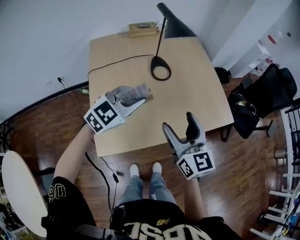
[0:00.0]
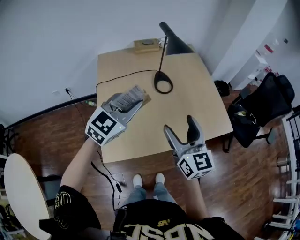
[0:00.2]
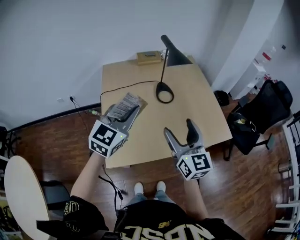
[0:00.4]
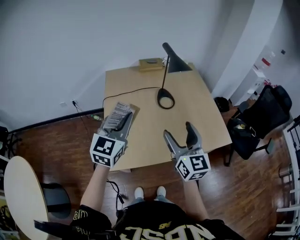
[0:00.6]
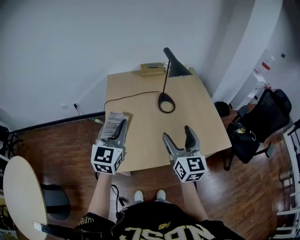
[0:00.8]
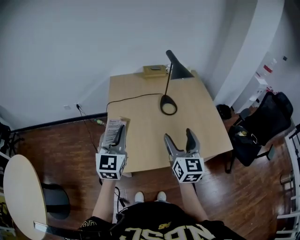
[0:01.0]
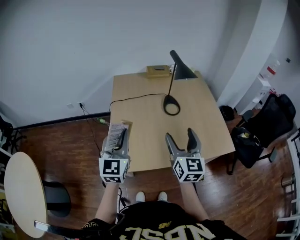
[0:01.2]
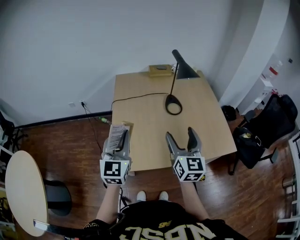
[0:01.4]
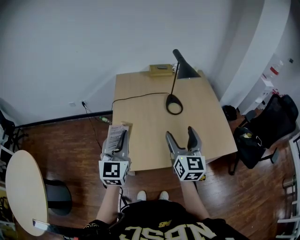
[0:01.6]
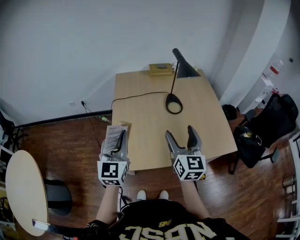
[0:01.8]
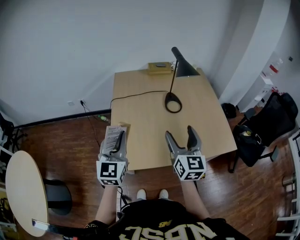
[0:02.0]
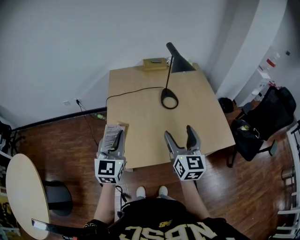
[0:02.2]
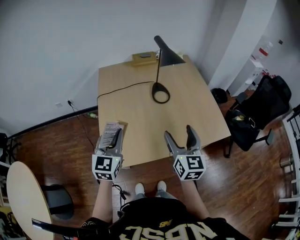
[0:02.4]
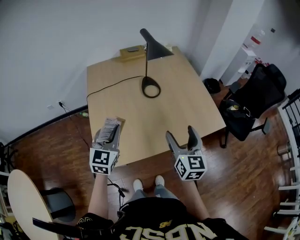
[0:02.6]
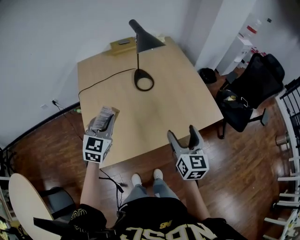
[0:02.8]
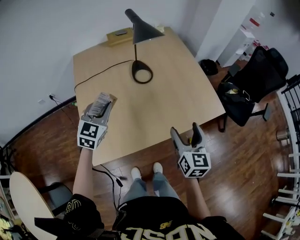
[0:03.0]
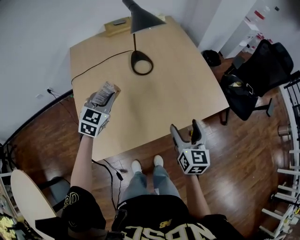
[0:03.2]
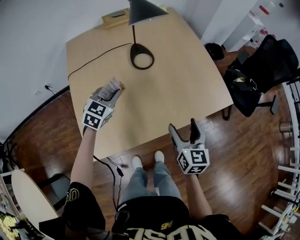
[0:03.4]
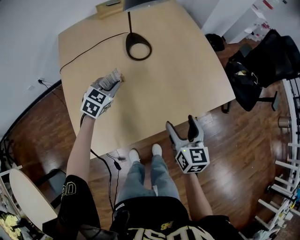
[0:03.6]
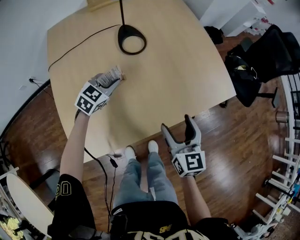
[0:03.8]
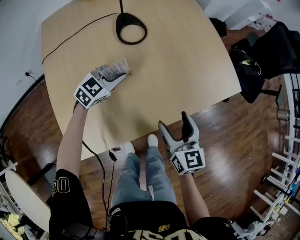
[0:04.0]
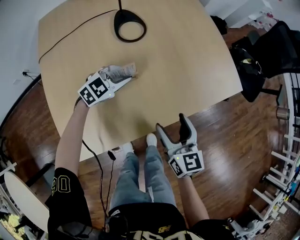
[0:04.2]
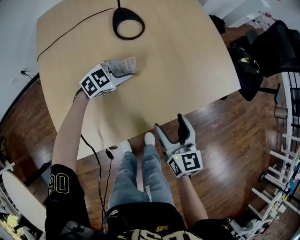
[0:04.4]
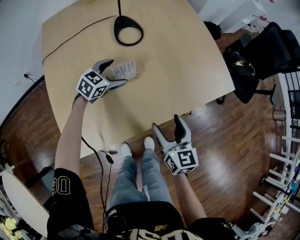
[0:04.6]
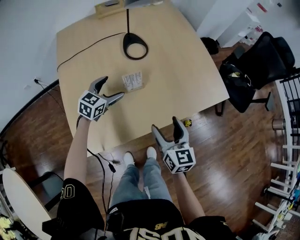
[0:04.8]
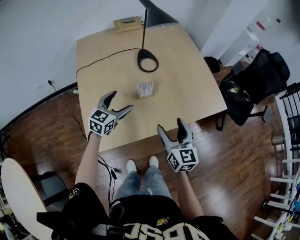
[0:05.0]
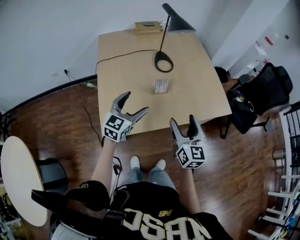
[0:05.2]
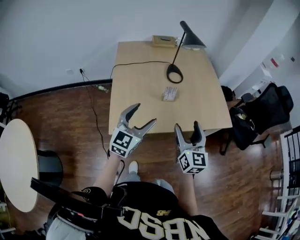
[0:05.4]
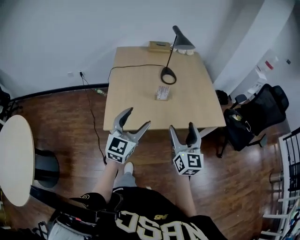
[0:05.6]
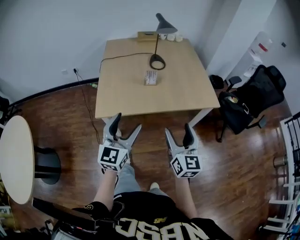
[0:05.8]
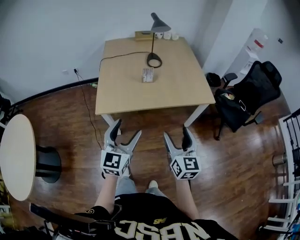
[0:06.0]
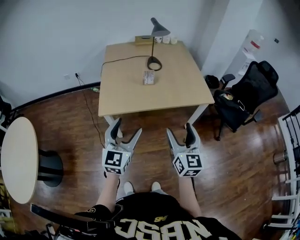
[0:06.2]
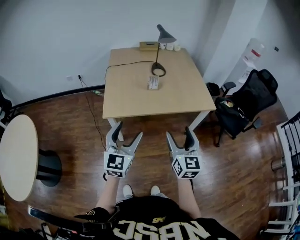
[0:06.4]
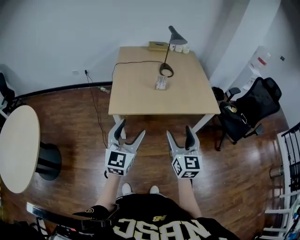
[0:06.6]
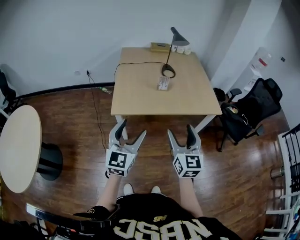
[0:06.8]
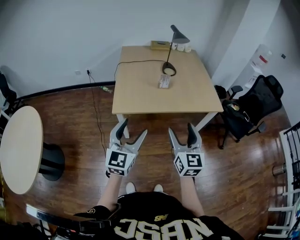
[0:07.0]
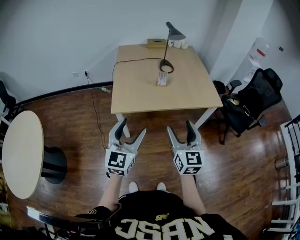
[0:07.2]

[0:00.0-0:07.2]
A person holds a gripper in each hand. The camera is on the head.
0:00.0 to 0:01.4: The right gripper moves upward, about 5 cm. The left gripper travels to the left, backward and upward by some 20 cm, and turns by some 60 degrees.
0:01.4 to 0:02.8: The left gripper goes approximately 15 cm downward, forward and to the right, and rotates about 30 degrees, while the right gripper moves to the right and downward, some 15 cm.
0:02.8 to 0:04.4: The left gripper shifts some 35 cm downward and forward, and turns by some 50 degrees; the right gripper travels downward by roughly 20 cm.
0:04.4 to 0:05.8: The right gripper moves roughly 35 cm, and turns by approximately 20 degrees. The left gripper moves approximately 60 cm, points its fingers roughly 40 degrees further upward, and opens up.
0:05.8 to 0:07.2: The two grippers go roughly 10 cm backward and to the left.

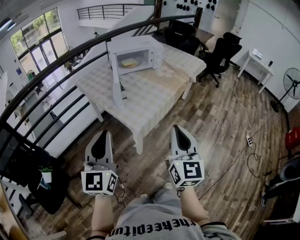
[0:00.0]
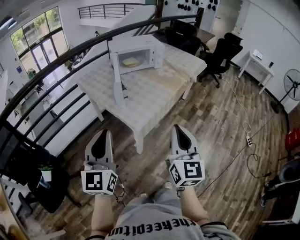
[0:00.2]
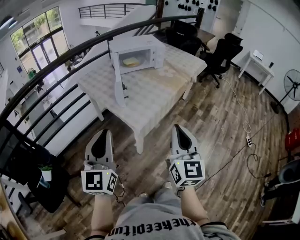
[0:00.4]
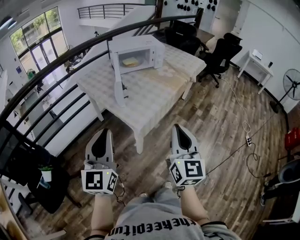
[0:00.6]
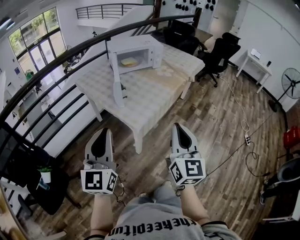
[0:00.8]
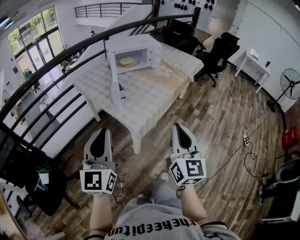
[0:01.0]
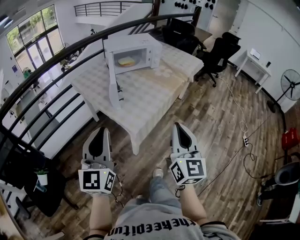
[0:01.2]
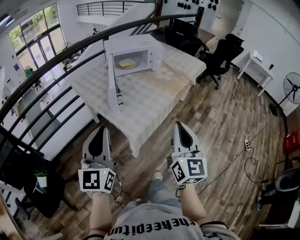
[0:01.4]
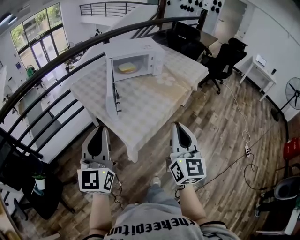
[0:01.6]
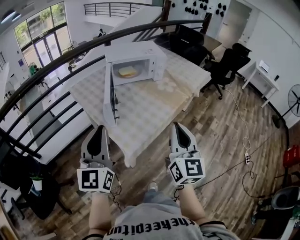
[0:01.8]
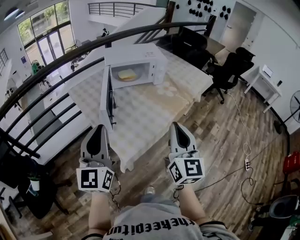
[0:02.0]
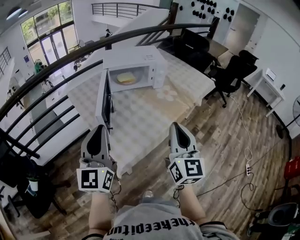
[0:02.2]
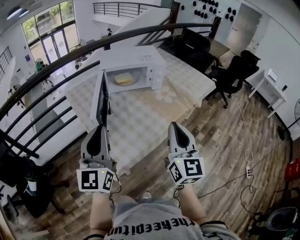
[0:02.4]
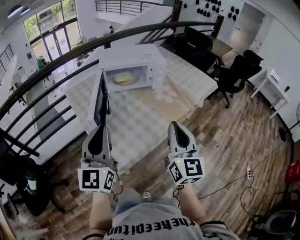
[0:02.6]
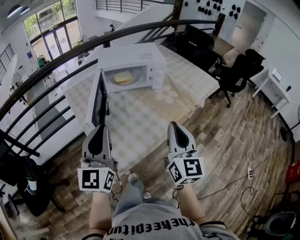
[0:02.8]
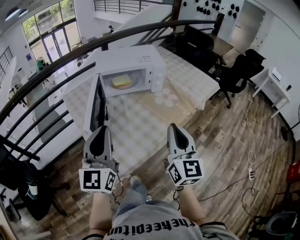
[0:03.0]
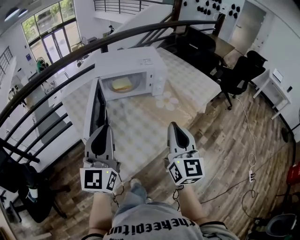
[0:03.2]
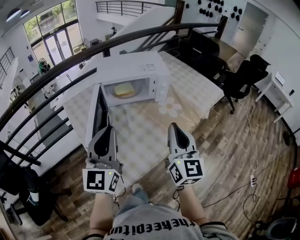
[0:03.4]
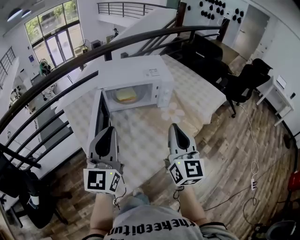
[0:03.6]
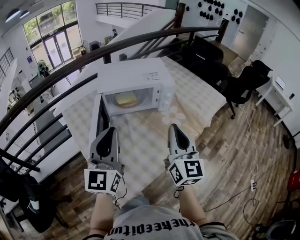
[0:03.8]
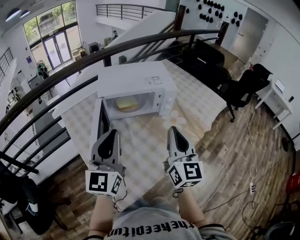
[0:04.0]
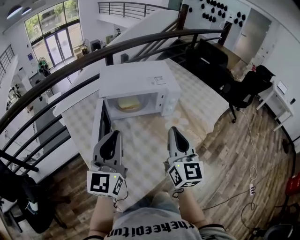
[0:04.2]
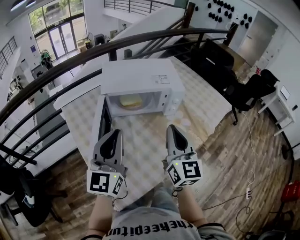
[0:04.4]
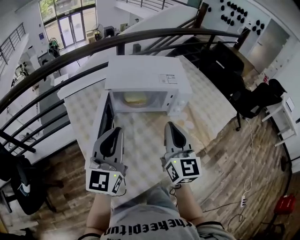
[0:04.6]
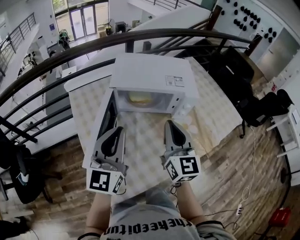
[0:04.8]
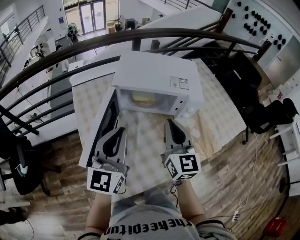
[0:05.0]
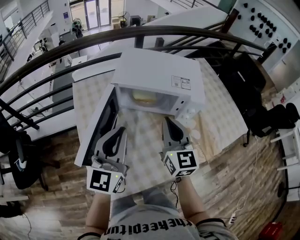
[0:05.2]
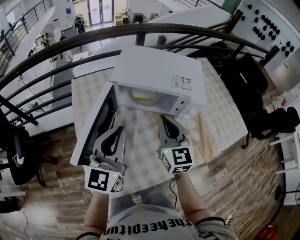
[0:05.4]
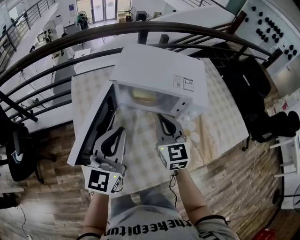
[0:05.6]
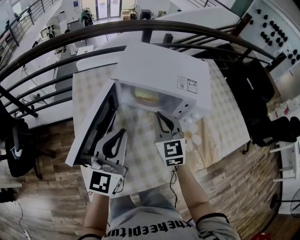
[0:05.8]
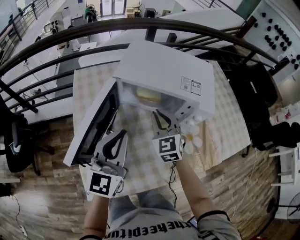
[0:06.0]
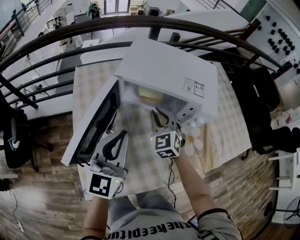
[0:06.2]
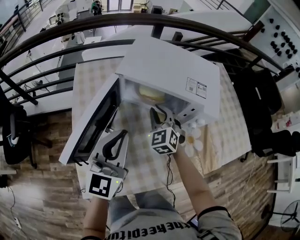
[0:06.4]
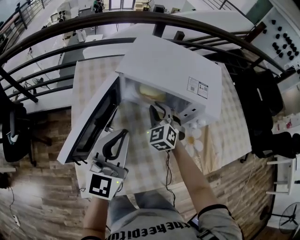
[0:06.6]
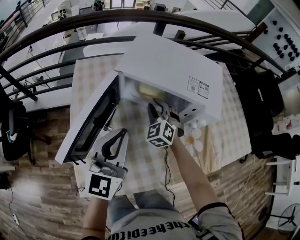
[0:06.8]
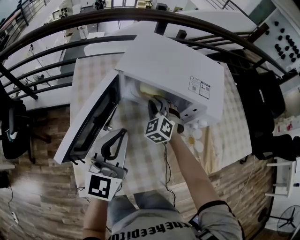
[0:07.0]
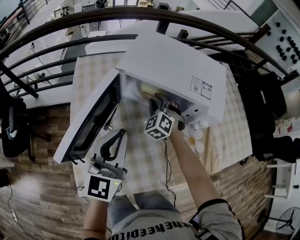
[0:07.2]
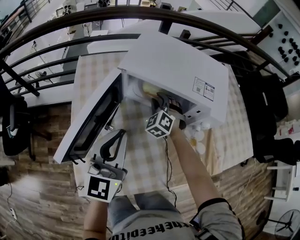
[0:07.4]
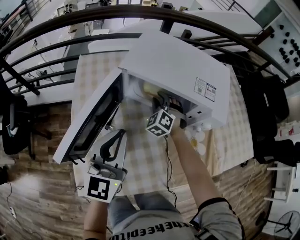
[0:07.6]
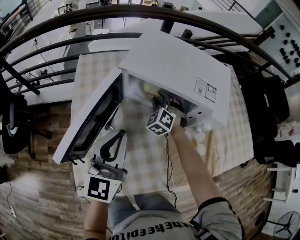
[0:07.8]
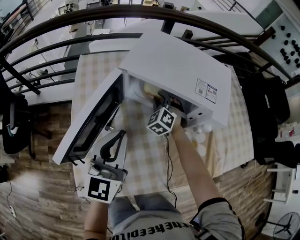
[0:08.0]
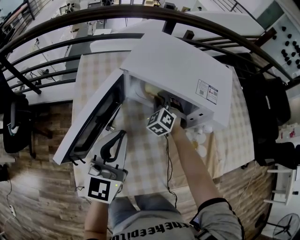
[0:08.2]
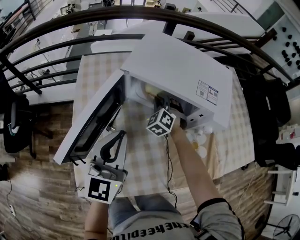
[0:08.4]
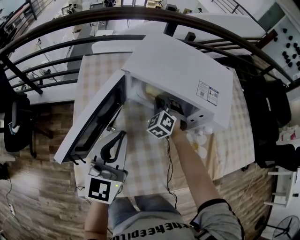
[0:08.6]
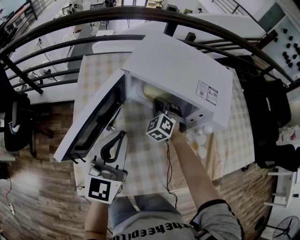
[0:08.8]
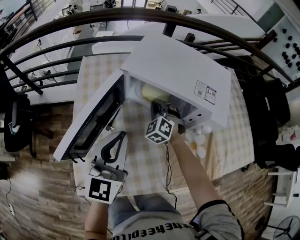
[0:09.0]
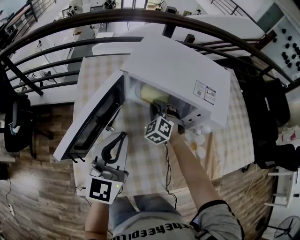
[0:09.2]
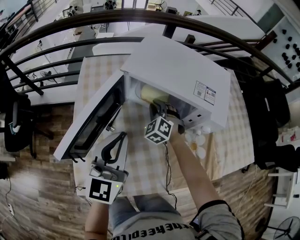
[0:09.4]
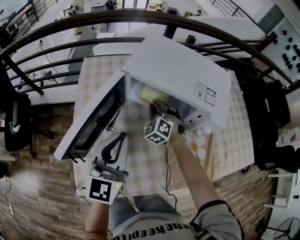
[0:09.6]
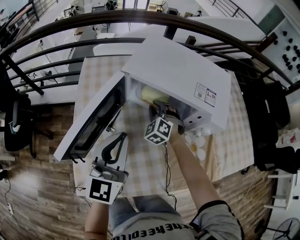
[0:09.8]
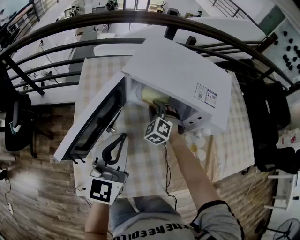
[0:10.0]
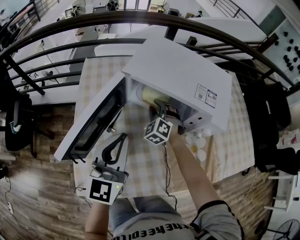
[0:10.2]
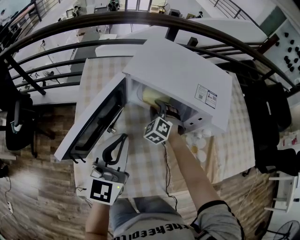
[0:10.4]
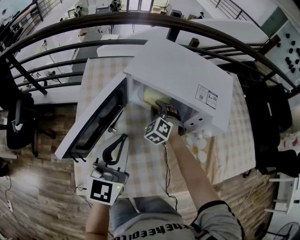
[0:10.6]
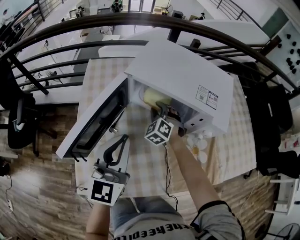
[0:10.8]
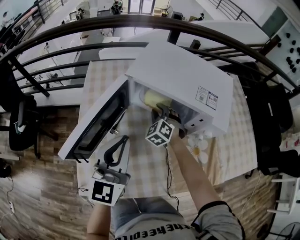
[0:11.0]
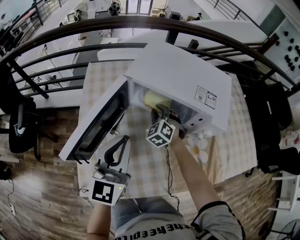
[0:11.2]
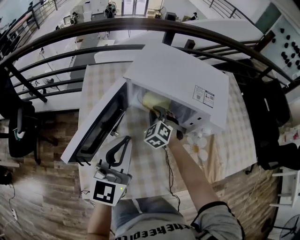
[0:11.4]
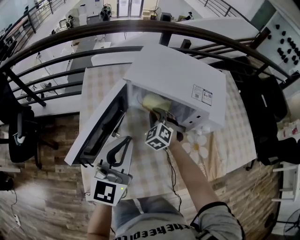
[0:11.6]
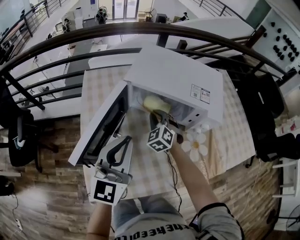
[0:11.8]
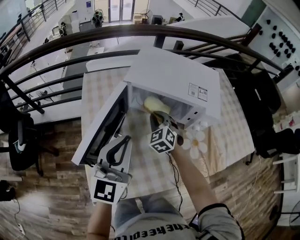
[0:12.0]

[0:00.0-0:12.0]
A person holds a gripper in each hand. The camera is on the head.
0:00.0 to 0:01.6: The grippers both shift forward by about 10 cm.
0:01.6 to 0:03.0: The two grippers go approximately 25 cm forward and to the right.
0:03.0 to 0:04.4: Both grippers move forward, approximately 20 cm.
0:04.4 to 0:06.0: The right gripper shifts roughly 25 cm forward and downward, and swivels some 50 degrees. Meanwhile the left gripper goes some 10 cm downward and forward.
0:06.0 to 0:07.6: The right gripper heads downward and forward, covering approximately 15 cm, changes its angle by approximately 40 degrees, and opens its fingers.
0:07.6 to 0:09.0: The right gripper closes up.
0:09.0 to 0:10.4: The right gripper opens up.
0:10.4 to 0:12.0: The left gripper moves some 5 cm; the right gripper heads upward and backward, covering roughly 10 cm, turns by about 20 degrees, and closes up.

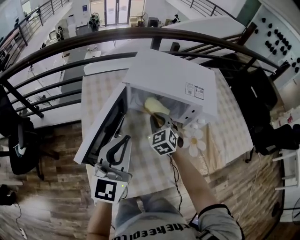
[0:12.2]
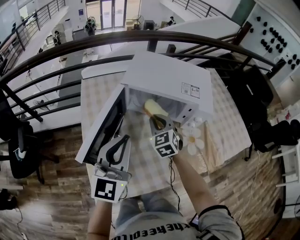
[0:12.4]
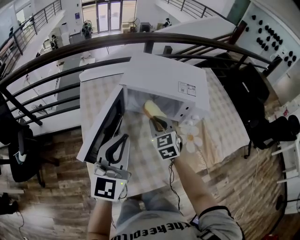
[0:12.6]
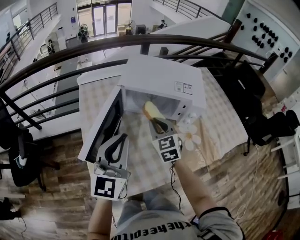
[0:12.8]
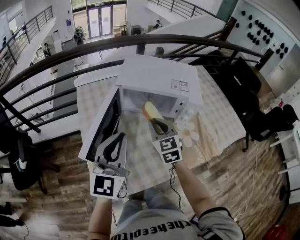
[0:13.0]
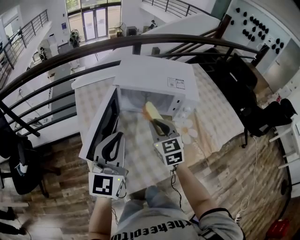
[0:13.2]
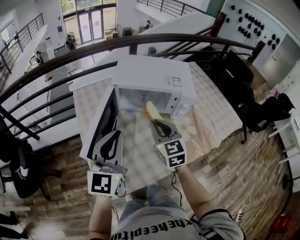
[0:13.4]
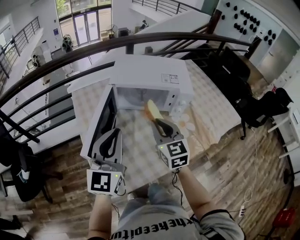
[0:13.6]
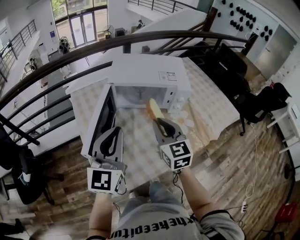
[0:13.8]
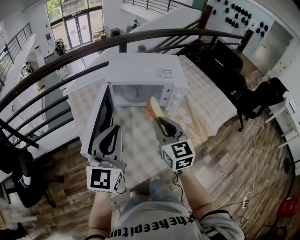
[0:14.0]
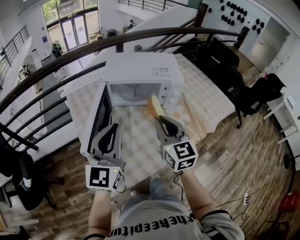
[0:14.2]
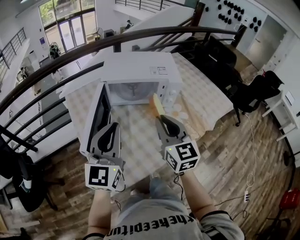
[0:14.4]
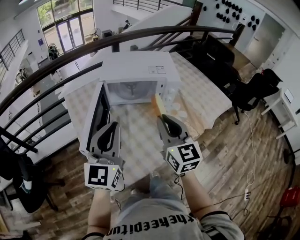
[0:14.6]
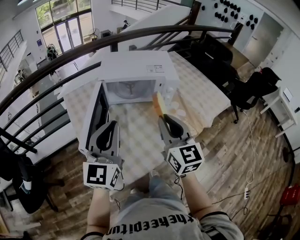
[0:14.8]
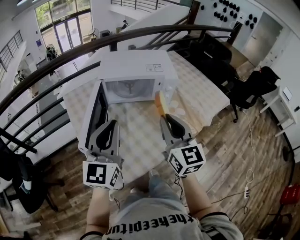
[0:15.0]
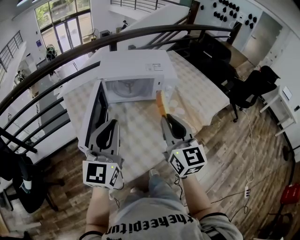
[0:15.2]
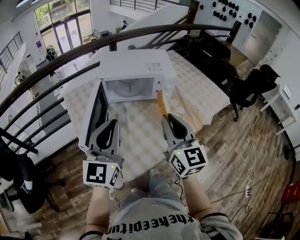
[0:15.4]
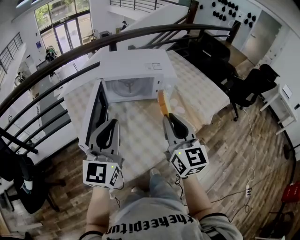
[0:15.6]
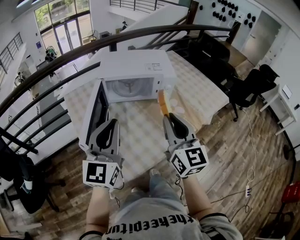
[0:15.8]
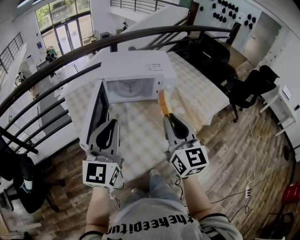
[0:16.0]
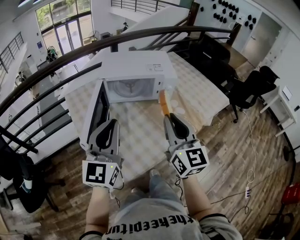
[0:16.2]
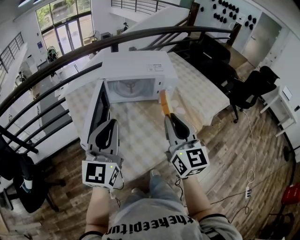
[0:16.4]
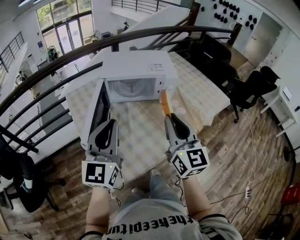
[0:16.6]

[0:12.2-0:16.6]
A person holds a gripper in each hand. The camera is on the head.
0:12.2 to 0:13.6: The left gripper moves upward and backward, some 10 cm, while the right gripper travels backward and upward by some 20 cm, and changes its angle by roughly 30 degrees.
0:13.6 to 0:15.2: The right gripper goes approximately 15 cm backward, upward and to the right.
0:15.2 to 0:16.6: The grippers stay close to where they were, moving slightly.
